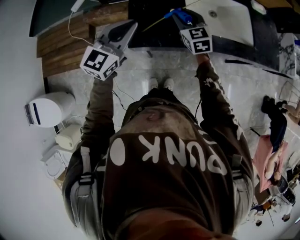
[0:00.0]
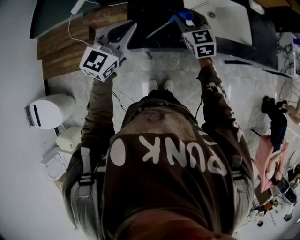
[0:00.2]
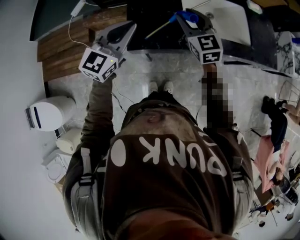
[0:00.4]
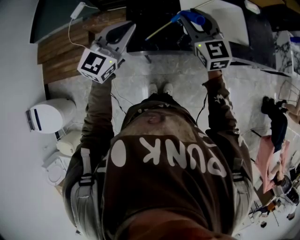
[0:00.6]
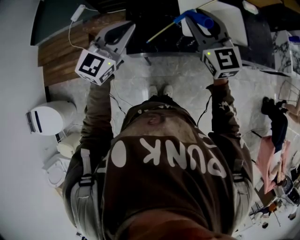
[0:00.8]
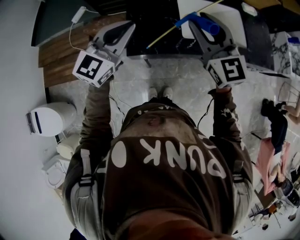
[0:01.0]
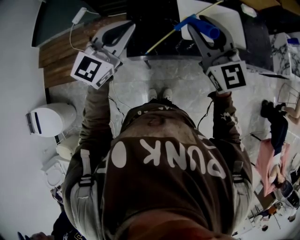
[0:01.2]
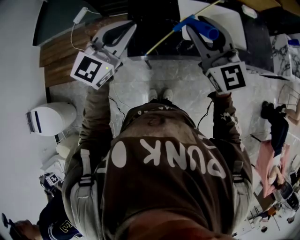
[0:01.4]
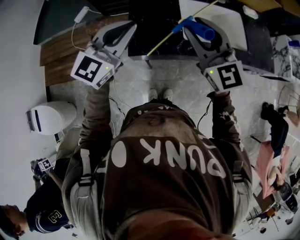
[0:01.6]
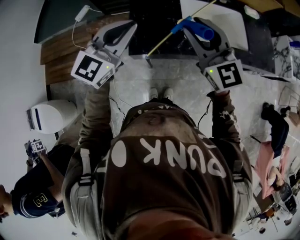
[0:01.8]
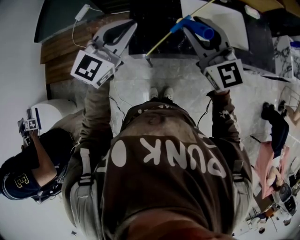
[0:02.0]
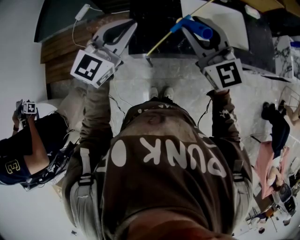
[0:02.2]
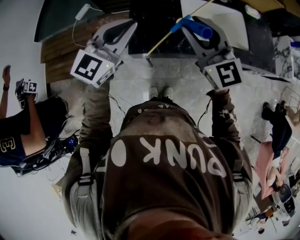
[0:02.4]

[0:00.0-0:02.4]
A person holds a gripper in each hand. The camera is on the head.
0:00.0 to 0:01.2: The right gripper is displaced upward and backward by some 25 cm, and rotates some 20 degrees. Meanwhile the left gripper shifts some 10 cm upward.
0:01.2 to 0:02.4: The grippers move only a little.

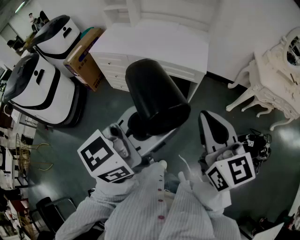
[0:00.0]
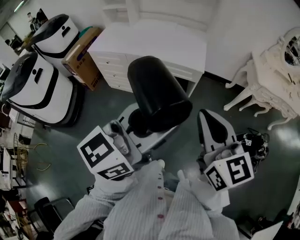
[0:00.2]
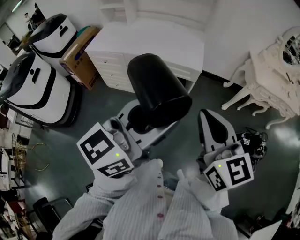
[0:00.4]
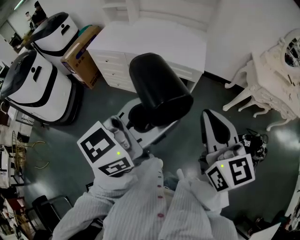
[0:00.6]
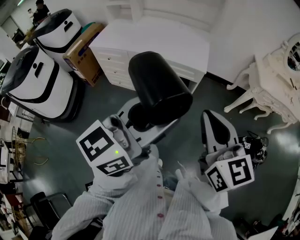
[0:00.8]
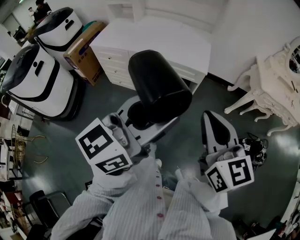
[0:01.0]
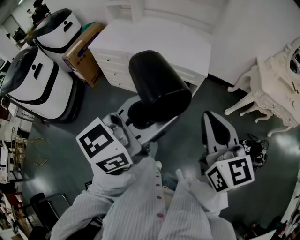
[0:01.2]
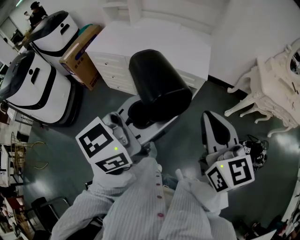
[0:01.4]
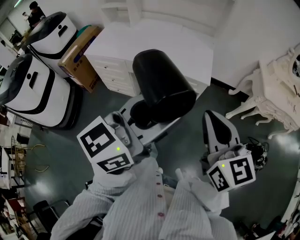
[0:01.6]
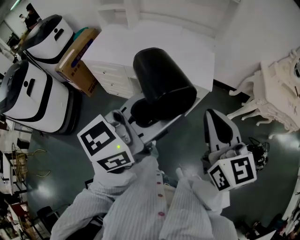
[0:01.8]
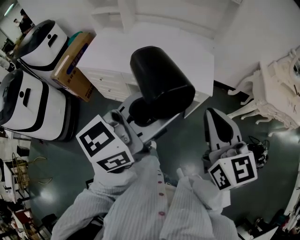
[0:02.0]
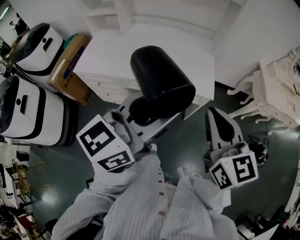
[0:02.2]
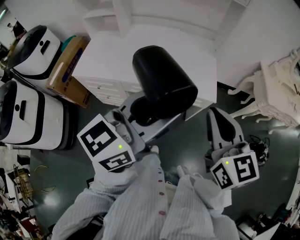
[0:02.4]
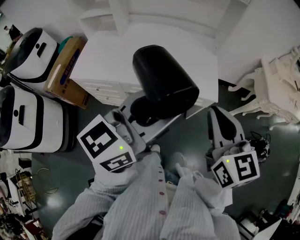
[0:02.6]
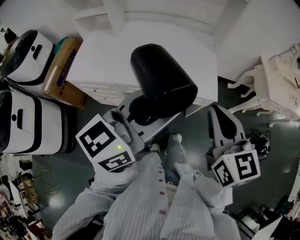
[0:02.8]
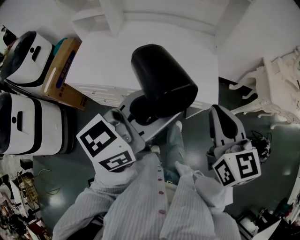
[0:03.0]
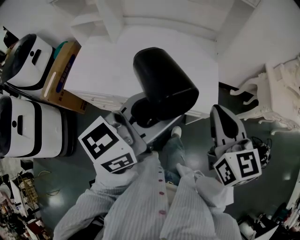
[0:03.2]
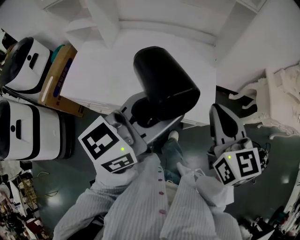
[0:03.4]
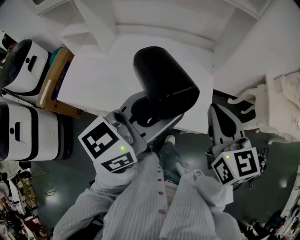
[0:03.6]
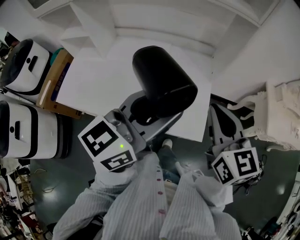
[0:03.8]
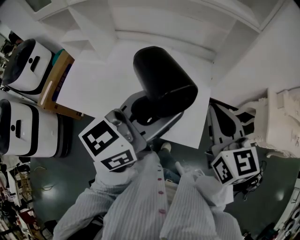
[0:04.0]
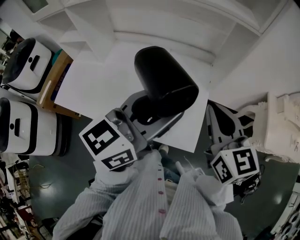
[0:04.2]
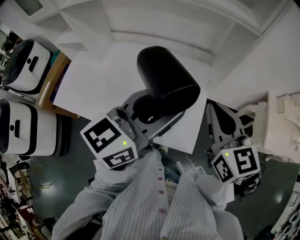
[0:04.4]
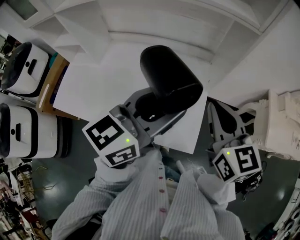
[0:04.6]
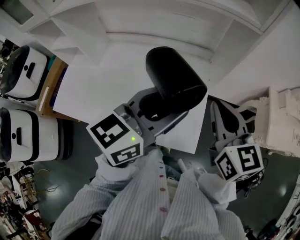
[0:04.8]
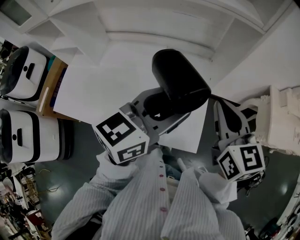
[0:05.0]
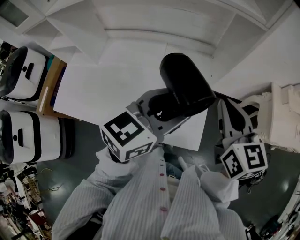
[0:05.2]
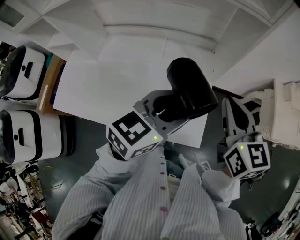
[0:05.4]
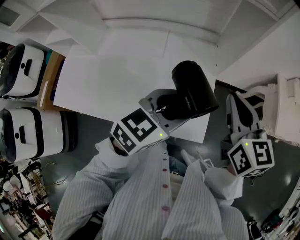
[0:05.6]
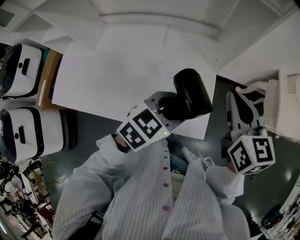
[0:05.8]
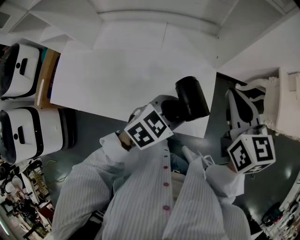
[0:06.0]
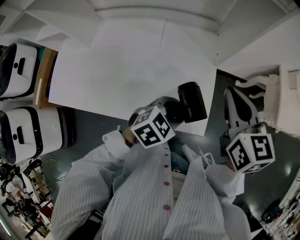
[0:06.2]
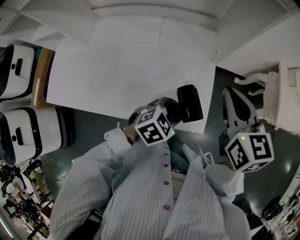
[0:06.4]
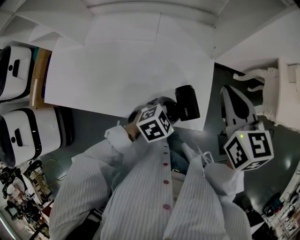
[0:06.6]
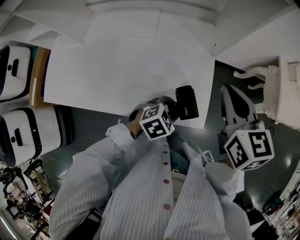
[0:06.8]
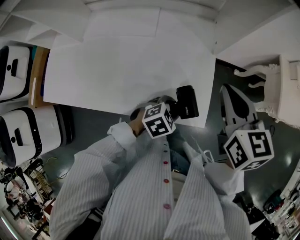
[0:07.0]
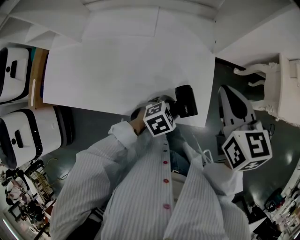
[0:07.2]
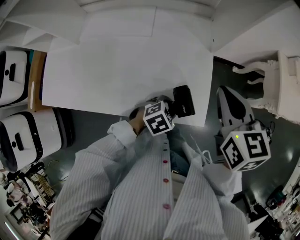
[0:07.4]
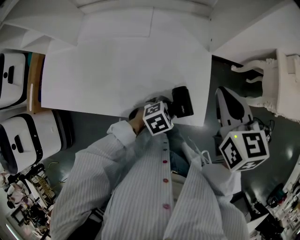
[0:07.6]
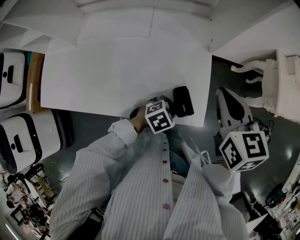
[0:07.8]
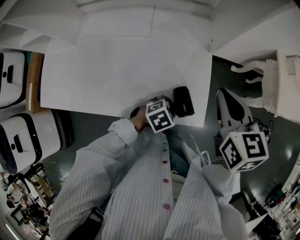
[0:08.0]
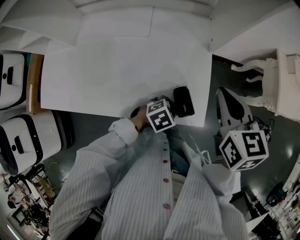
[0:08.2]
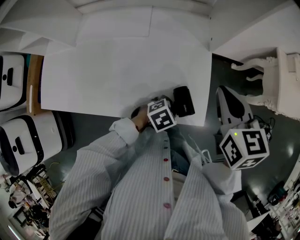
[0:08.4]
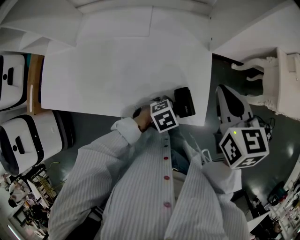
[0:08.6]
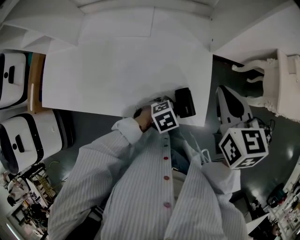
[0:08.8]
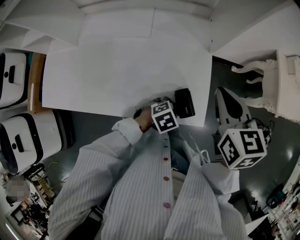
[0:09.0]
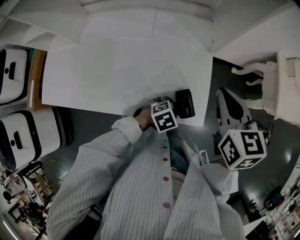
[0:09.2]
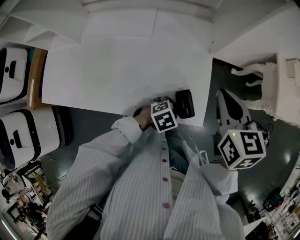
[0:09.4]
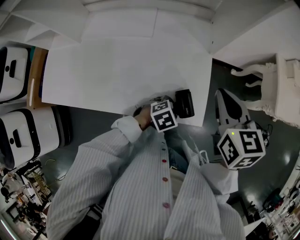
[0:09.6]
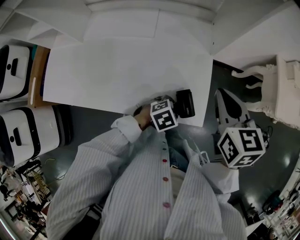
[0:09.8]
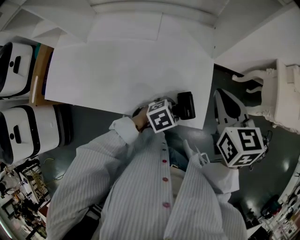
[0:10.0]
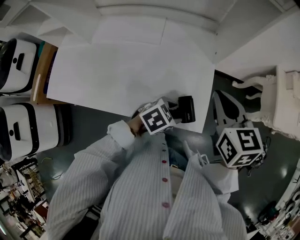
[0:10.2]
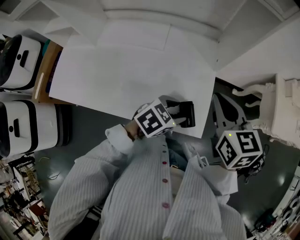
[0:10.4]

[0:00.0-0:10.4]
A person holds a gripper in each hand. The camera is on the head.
0:00.0 to 0:01.4: The grippers both shift forward by some 5 cm.
0:01.4 to 0:03.0: Both grippers move forward and to the left, about 30 cm.
0:03.0 to 0:04.4: Both grippers move forward, some 30 cm.
0:04.4 to 0:06.0: The left gripper goes roughly 25 cm downward, and points its fingers about 40 degrees further downward. Meanwhile the right gripper moves downward, about 5 cm.
0:06.0 to 0:07.4: The left gripper travels downward by some 15 cm, and rotates some 30 degrees; the right gripper moves about 5 cm.
0:07.4 to 0:09.0: There are only small adjustments of the grippers.
0:09.0 to 0:10.4: The left gripper heads upward, covering about 15 cm, and changes its angle by roughly 30 degrees.

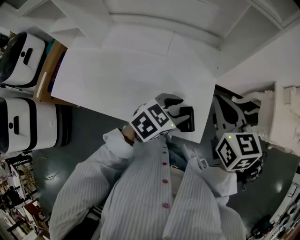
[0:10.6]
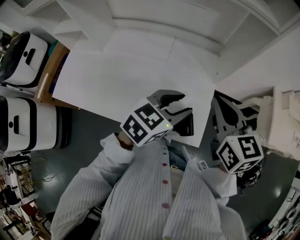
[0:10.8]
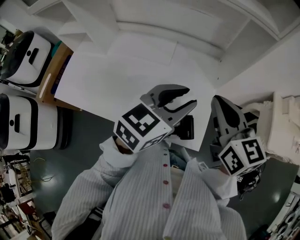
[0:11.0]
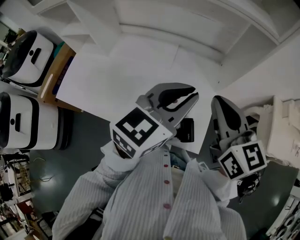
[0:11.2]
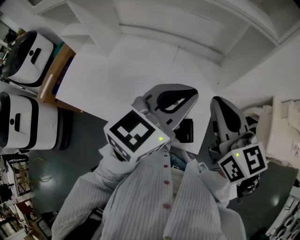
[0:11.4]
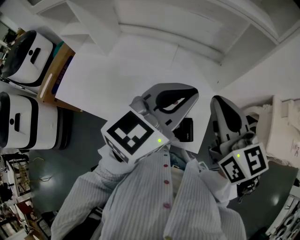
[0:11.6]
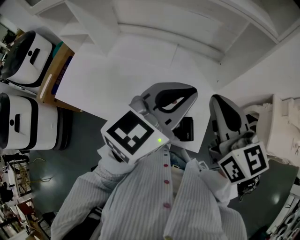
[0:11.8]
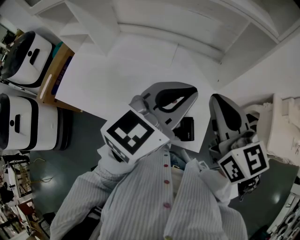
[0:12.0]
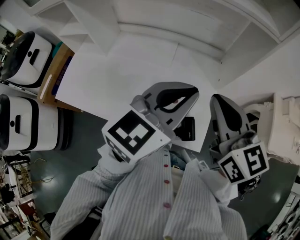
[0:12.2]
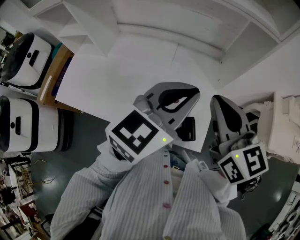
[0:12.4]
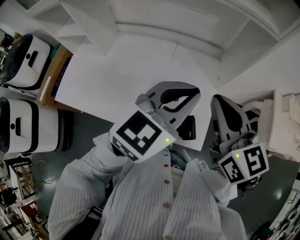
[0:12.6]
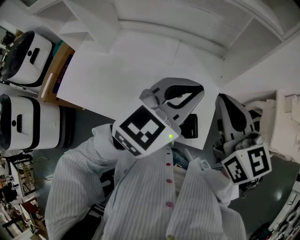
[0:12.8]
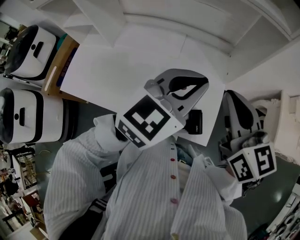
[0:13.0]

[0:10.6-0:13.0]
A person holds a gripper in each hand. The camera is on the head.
0:10.6 to 0:11.8: The right gripper heads upward, covering approximately 10 cm. Meanwhile the left gripper goes approximately 20 cm upward, turns by about 30 degrees, and closes up.
0:11.8 to 0:13.0: There are only small adjustments of the grippers.

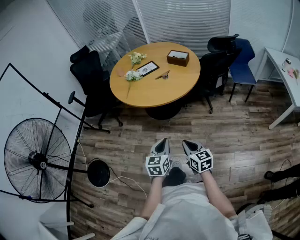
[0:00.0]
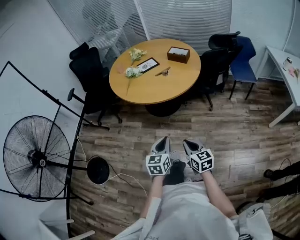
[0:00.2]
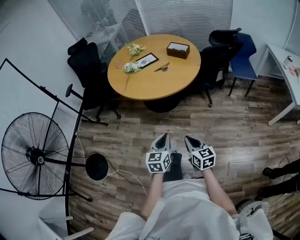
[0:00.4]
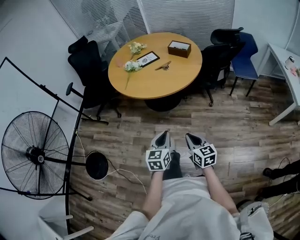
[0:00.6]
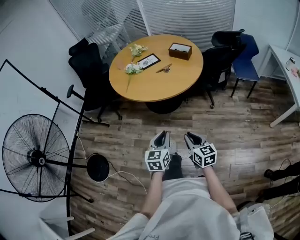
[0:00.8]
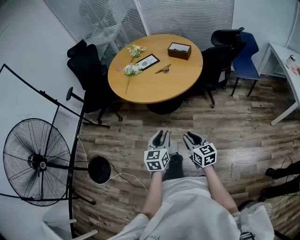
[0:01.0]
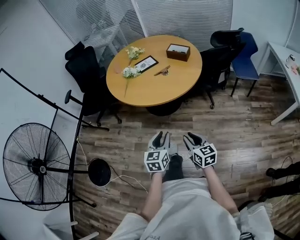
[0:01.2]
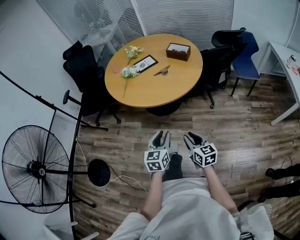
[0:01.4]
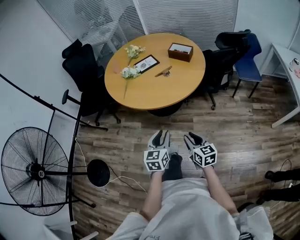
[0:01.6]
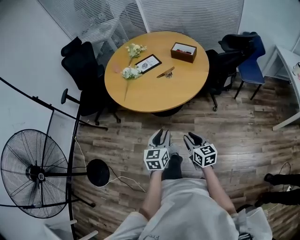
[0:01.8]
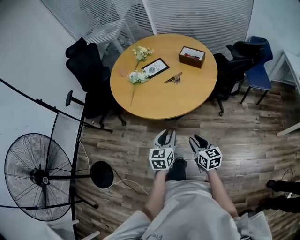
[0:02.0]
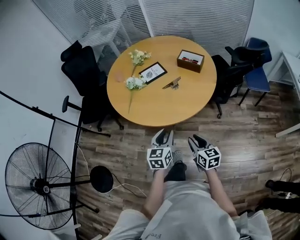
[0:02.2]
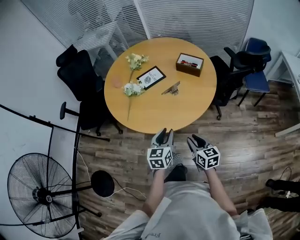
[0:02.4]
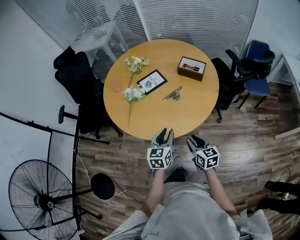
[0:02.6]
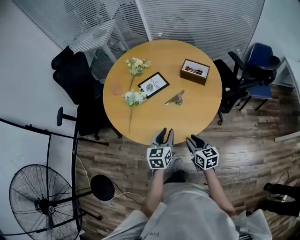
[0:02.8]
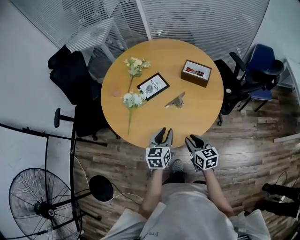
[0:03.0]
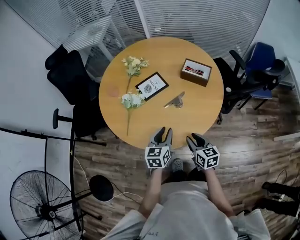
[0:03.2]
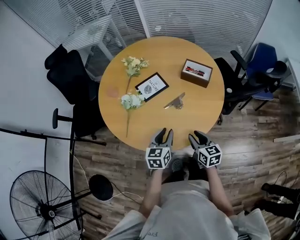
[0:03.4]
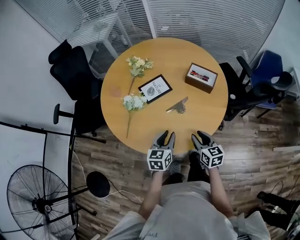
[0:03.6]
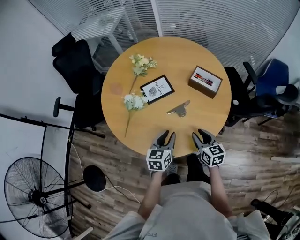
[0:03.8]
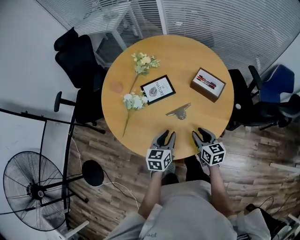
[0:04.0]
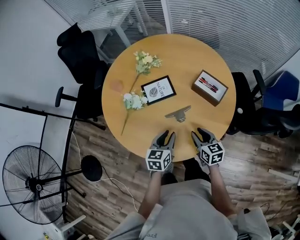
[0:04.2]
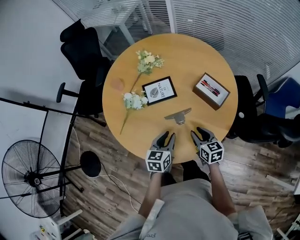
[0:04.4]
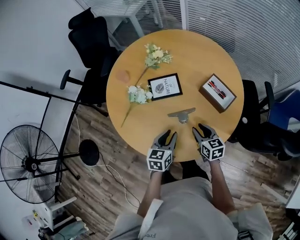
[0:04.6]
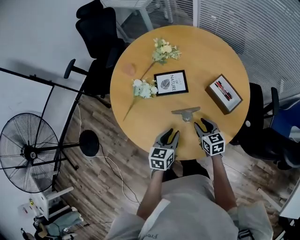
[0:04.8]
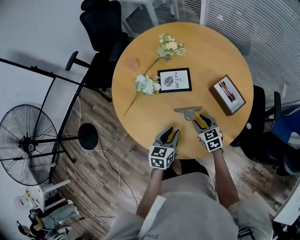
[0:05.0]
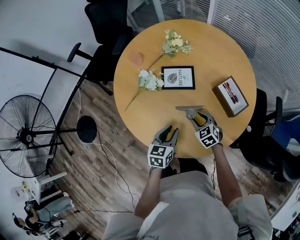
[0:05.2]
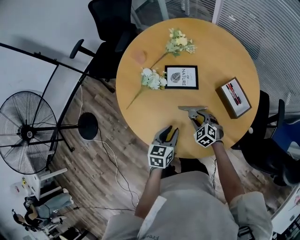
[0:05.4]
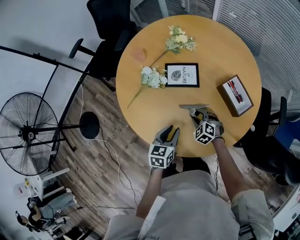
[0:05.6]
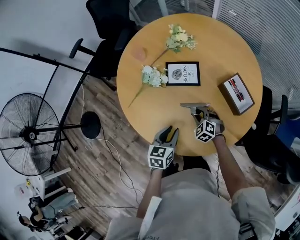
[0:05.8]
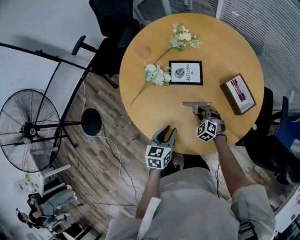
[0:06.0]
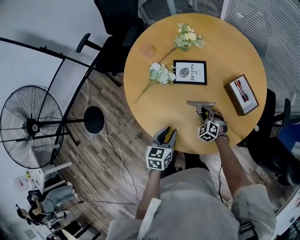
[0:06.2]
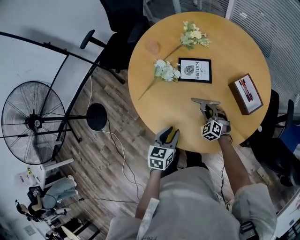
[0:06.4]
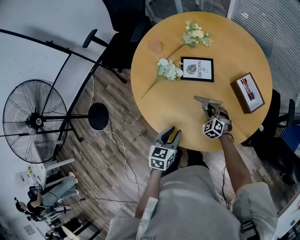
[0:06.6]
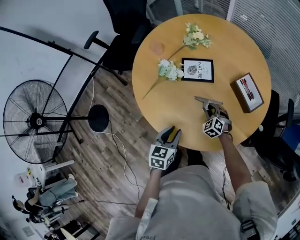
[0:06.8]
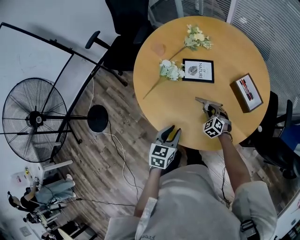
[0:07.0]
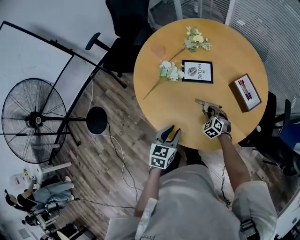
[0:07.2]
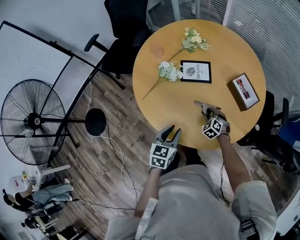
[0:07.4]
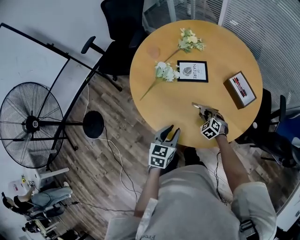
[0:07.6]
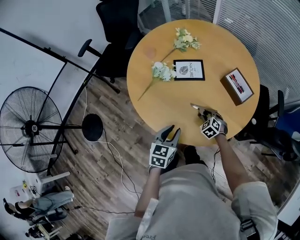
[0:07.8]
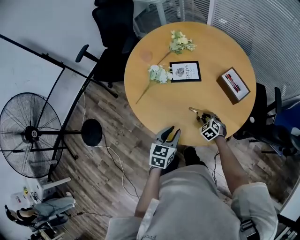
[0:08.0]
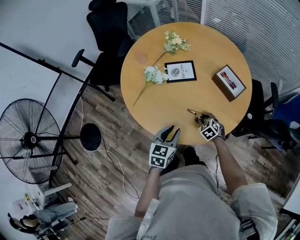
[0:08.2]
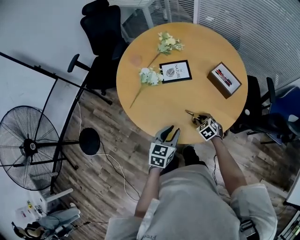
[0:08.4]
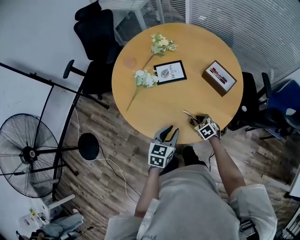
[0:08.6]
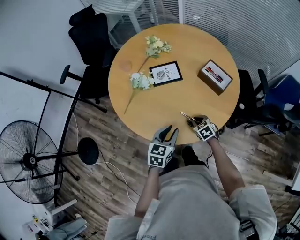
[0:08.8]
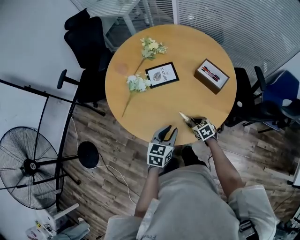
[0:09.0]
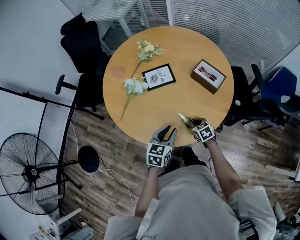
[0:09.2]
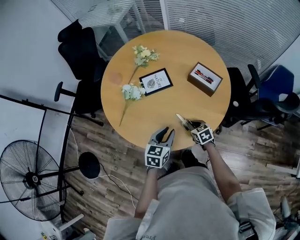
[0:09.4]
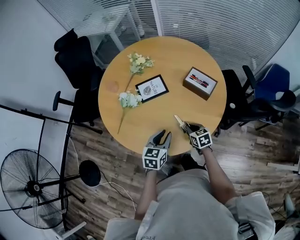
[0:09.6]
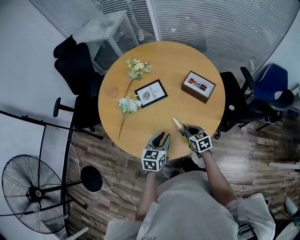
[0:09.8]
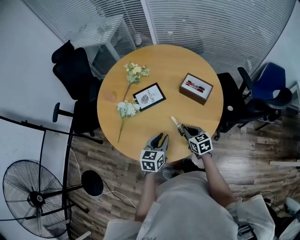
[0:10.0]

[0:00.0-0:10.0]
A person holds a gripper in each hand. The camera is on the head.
0:00.0 to 0:01.4: The two grippers go some 10 cm forward. The right gripper opens; the left gripper opens its fingers.
0:01.4 to 0:02.8: The two grippers go approximately 35 cm forward.
0:02.8 to 0:04.2: The left gripper is displaced forward, downward and to the right by about 15 cm. Meanwhile the right gripper heads forward and to the right, covering roughly 20 cm.
0:04.2 to 0:05.8: The right gripper goes about 20 cm downward, forward and to the left, and twists about 70 degrees counterclockwise, seen from behind.
0:05.8 to 0:07.2: The left gripper goes roughly 10 cm to the left and backward.
0:07.2 to 0:08.6: The right gripper shifts approximately 10 cm backward, and swivels roughly 30 degrees. Meanwhile the left gripper shifts about 5 cm to the right.
0:08.6 to 0:10.0: The right gripper shifts some 10 cm upward, and swivels approximately 40 degrees. Meanwhile the left gripper heads forward, covering about 5 cm.
